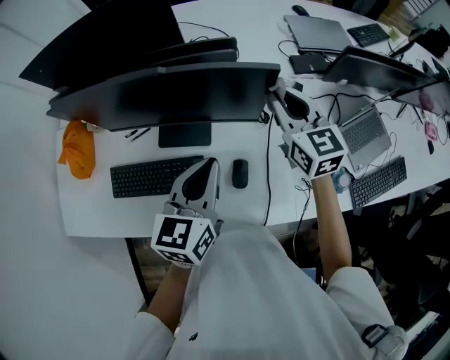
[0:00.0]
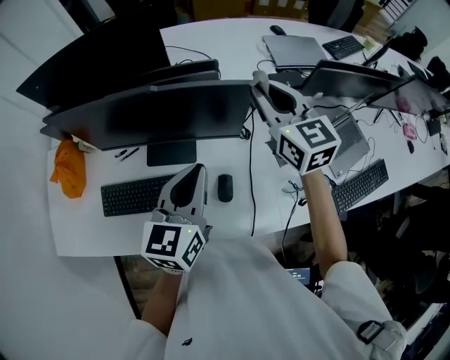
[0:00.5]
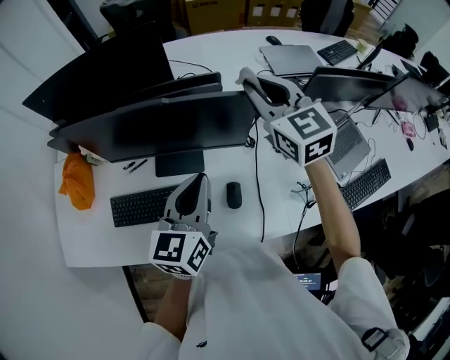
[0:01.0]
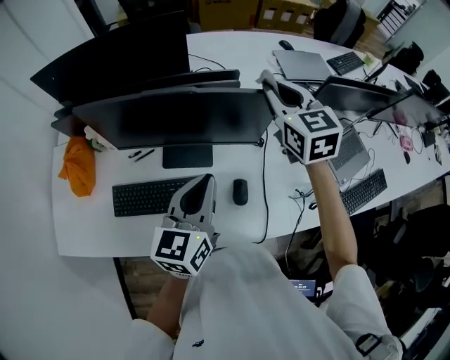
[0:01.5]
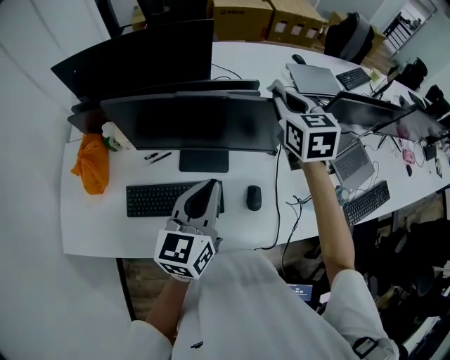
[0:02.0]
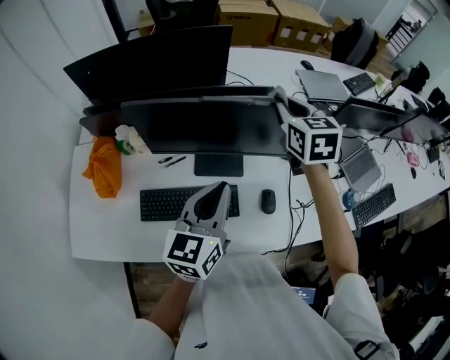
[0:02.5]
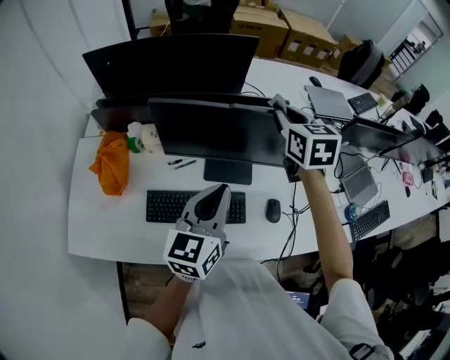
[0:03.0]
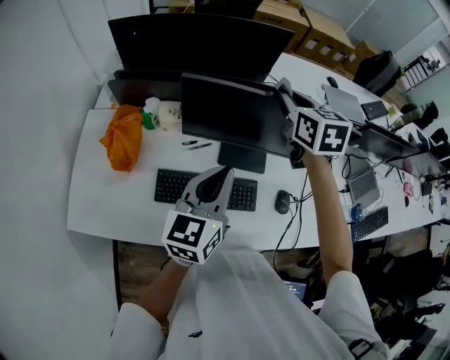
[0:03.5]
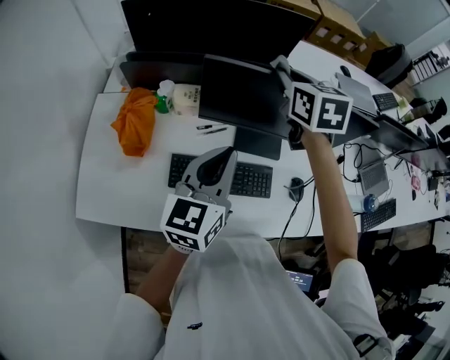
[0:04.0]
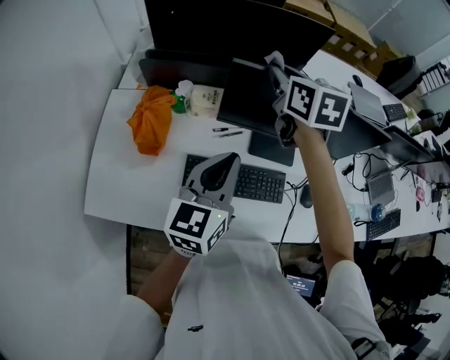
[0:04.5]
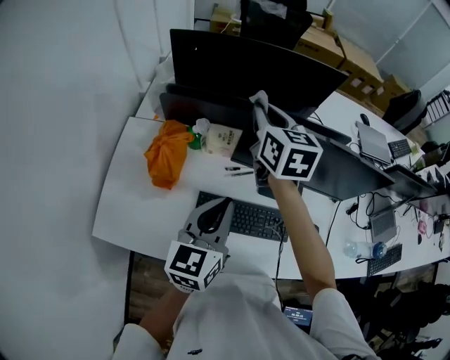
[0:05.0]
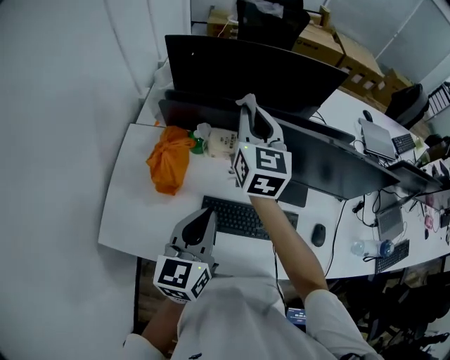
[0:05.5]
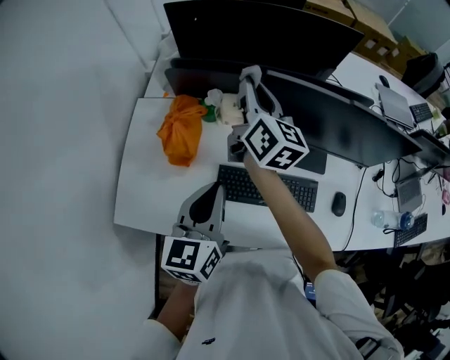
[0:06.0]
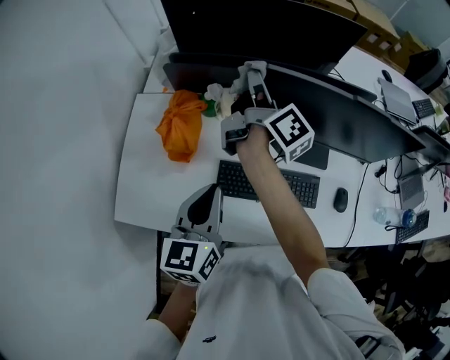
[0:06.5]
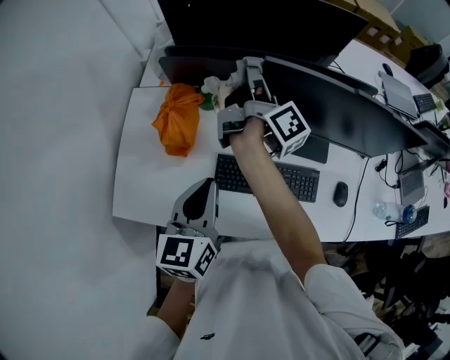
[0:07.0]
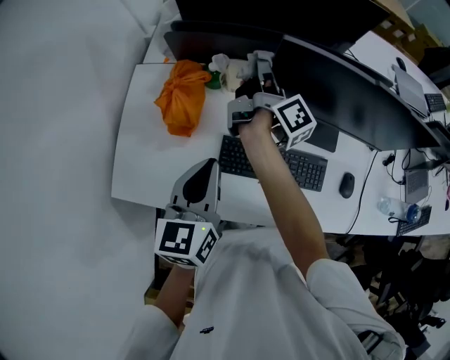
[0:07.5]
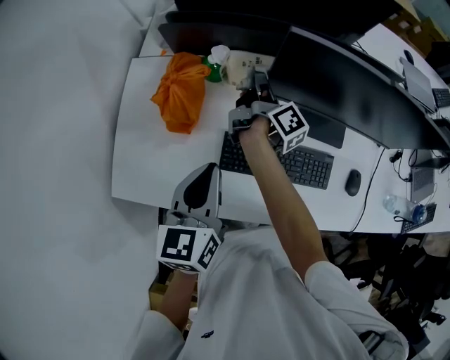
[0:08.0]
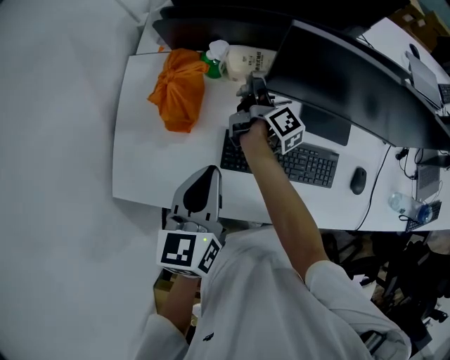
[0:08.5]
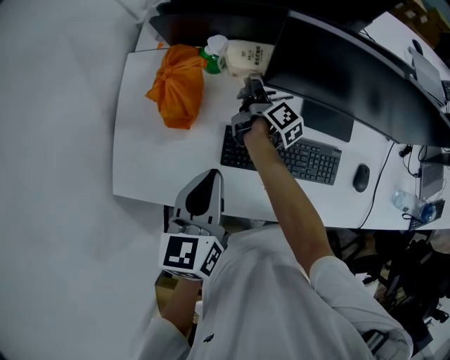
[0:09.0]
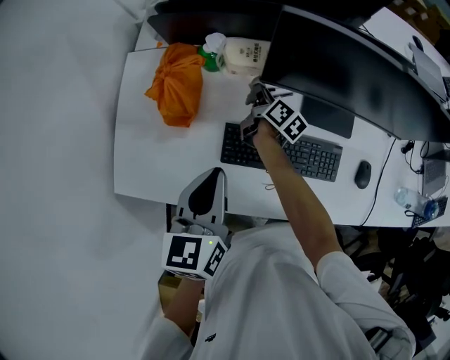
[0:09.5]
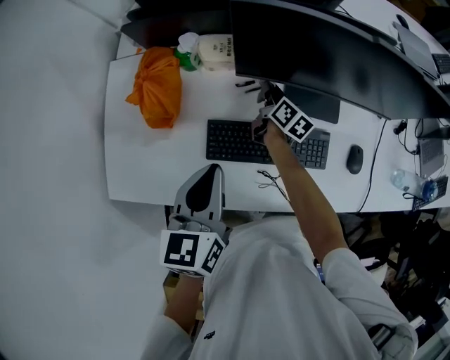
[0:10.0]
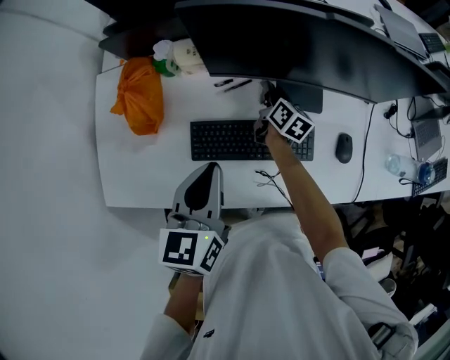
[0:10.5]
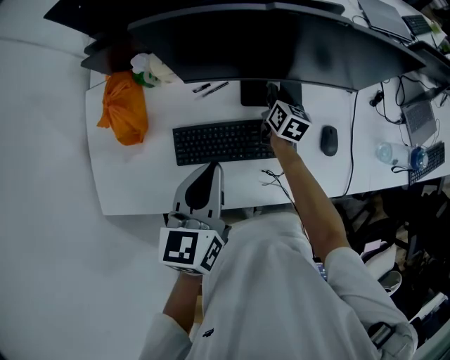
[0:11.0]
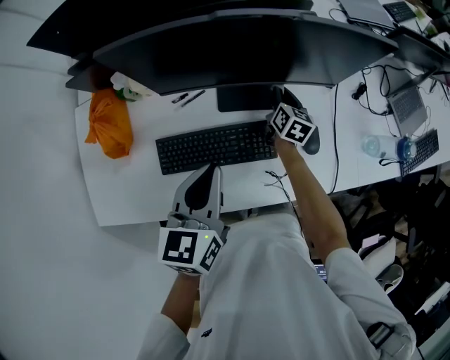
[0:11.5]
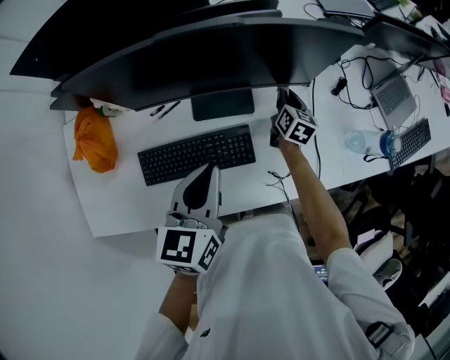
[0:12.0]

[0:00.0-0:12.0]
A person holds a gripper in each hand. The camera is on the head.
0:00.0 to 0:02.0: The right gripper heads upward and to the left, covering some 15 cm; the left gripper travels to the left and upward by some 10 cm.
0:02.0 to 0:04.0: Both grippers move to the left, roughly 25 cm.
0:04.0 to 0:06.0: The grippers both shift to the left by some 20 cm. The right gripper rotates about 40 degrees.
0:06.0 to 0:08.0: The right gripper is displaced downward by about 20 cm, and twists roughly 50 degrees clockwise, seen from behind; the left gripper ends up about 5 cm from where it was.
0:08.0 to 0:10.0: The right gripper is displaced downward and to the right by approximately 15 cm, and rotates about 40 degrees. Meanwhile the left gripper shifts about 5 cm to the right.
0:10.0 to 0:12.0: The two grippers go approximately 30 cm to the right. The right gripper turns by about 30 degrees.

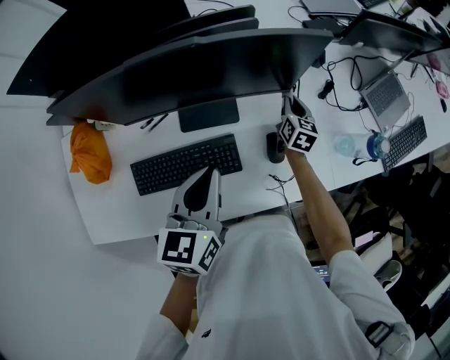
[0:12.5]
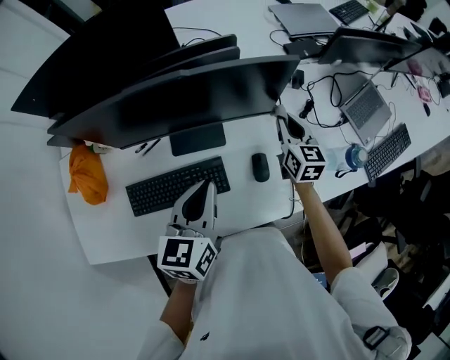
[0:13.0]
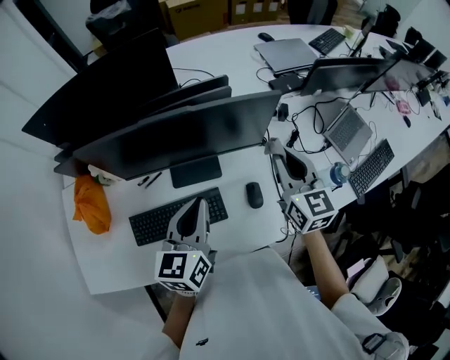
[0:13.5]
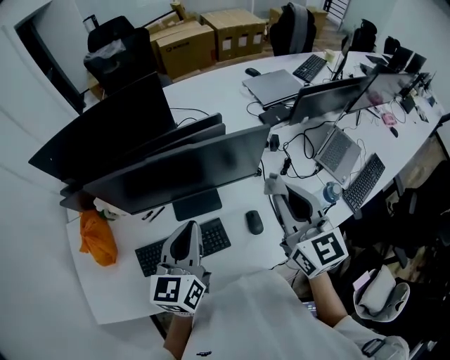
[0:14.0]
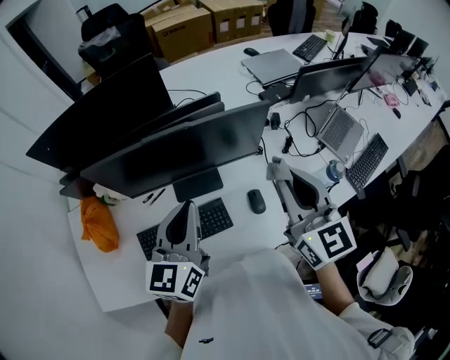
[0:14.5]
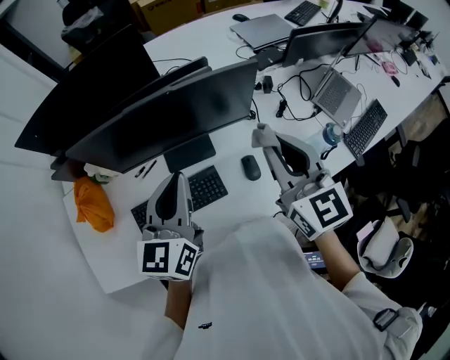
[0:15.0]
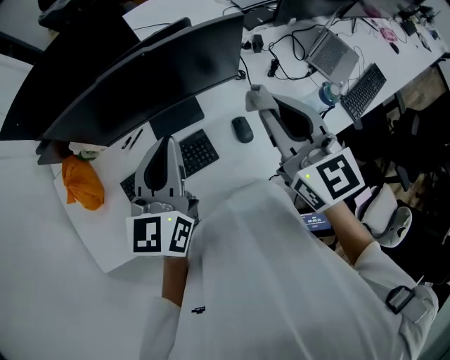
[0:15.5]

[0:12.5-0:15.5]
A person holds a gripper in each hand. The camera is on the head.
0:12.5 to 0:14.0: The right gripper shifts approximately 40 cm upward and backward, and changes its angle by roughly 30 degrees. The left gripper moves upward, some 10 cm.
0:14.0 to 0:15.5: The grippers make only small movements.

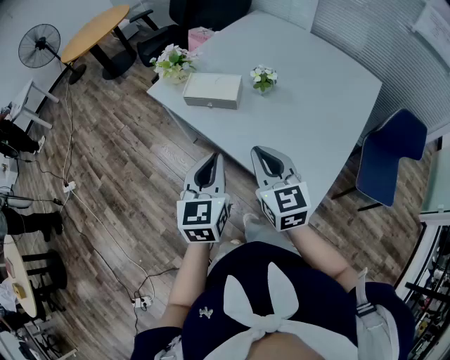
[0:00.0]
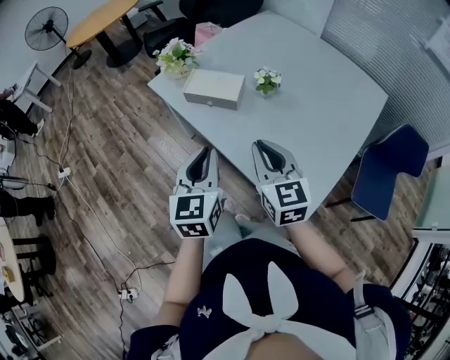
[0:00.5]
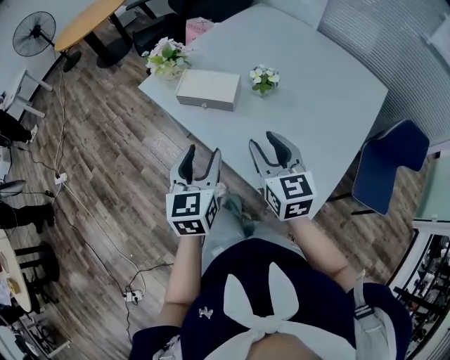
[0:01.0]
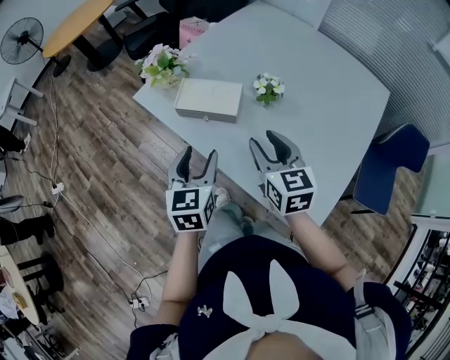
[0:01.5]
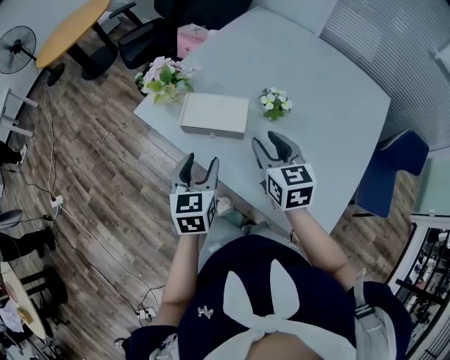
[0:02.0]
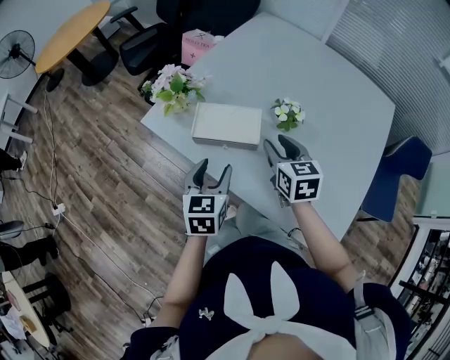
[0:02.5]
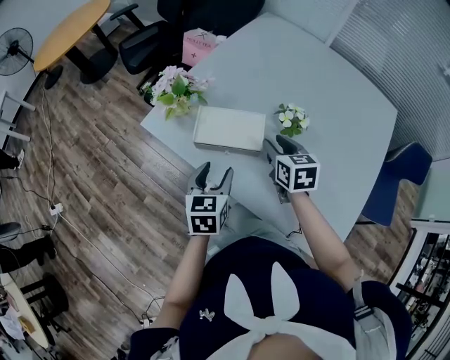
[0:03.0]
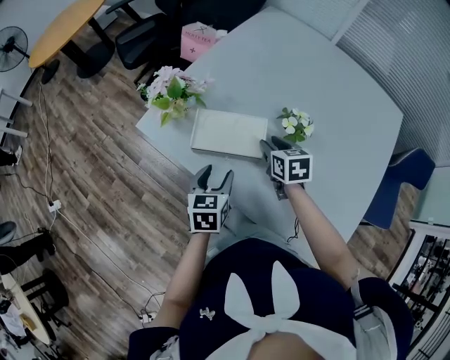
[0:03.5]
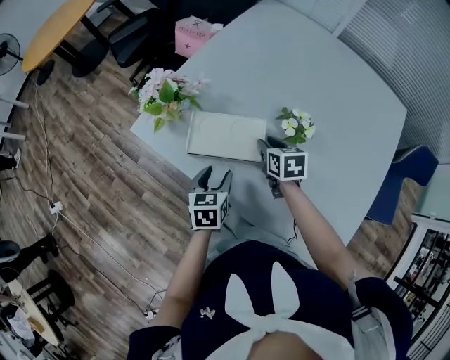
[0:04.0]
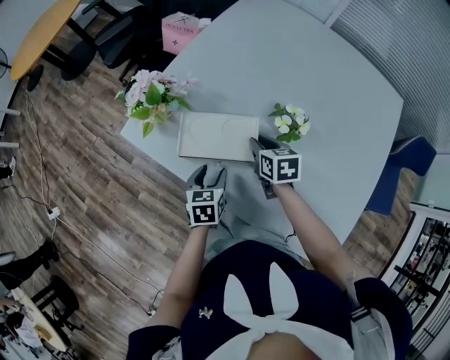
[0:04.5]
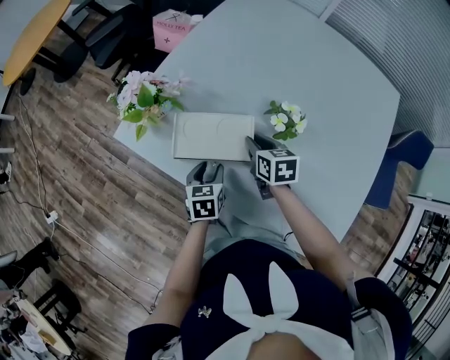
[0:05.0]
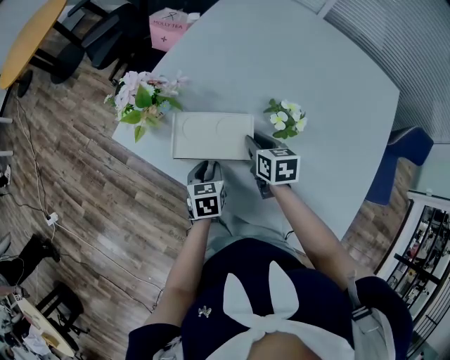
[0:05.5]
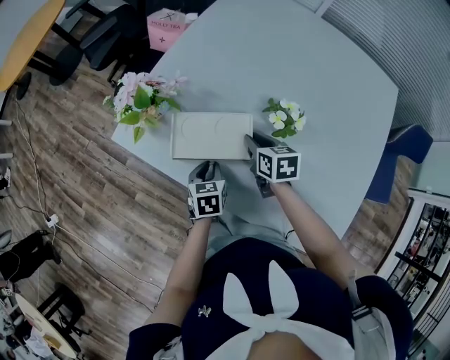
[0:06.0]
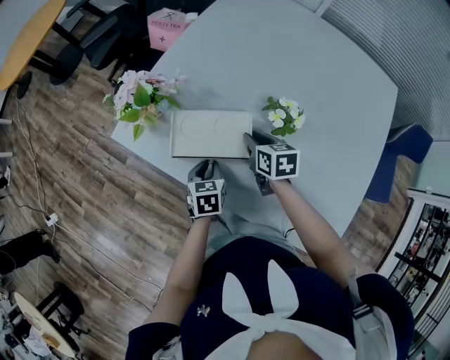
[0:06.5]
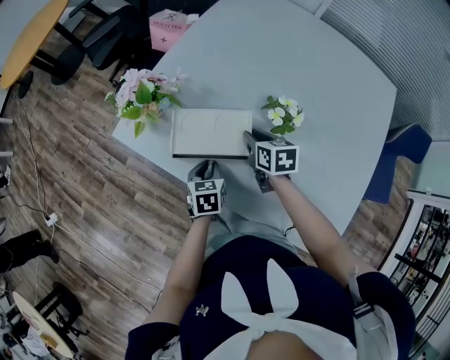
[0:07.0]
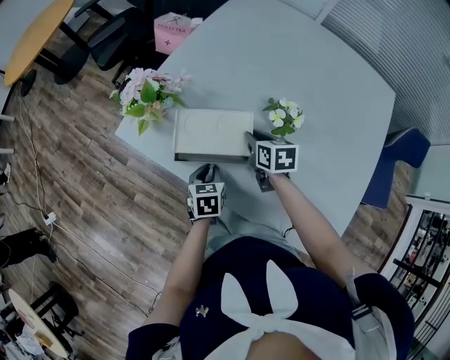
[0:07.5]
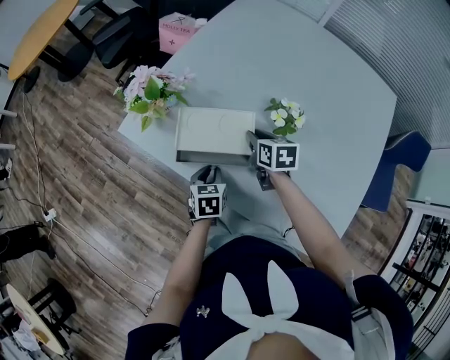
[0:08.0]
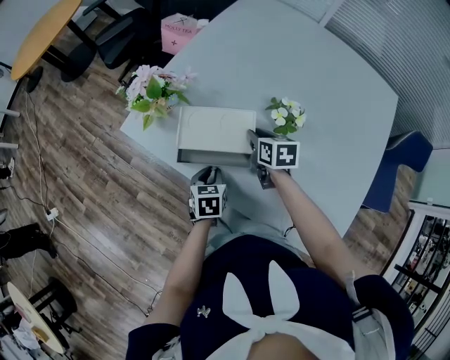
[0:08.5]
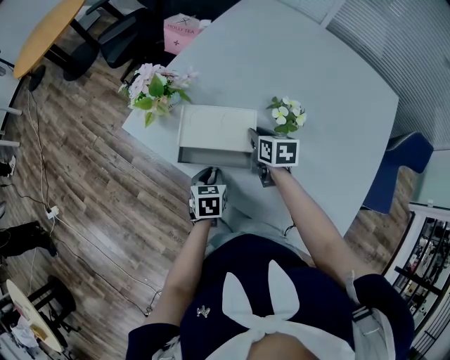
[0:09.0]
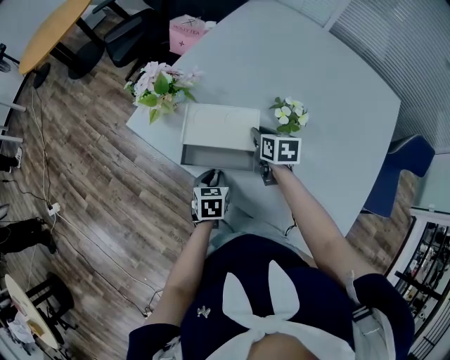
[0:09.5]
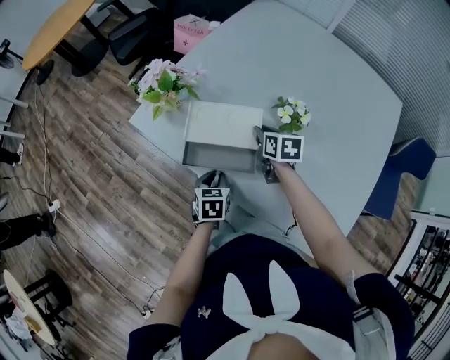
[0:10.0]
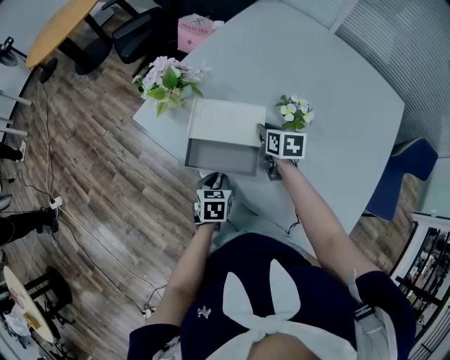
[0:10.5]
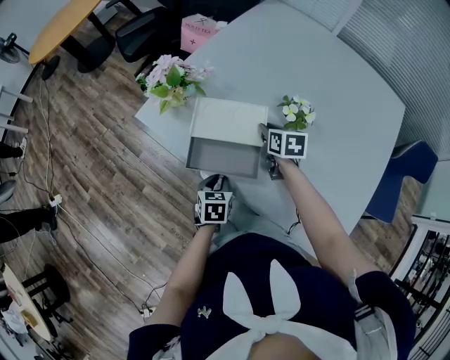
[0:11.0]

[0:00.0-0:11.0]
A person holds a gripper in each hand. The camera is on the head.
0:00.0 to 0:02.0: The right gripper travels forward by approximately 25 cm, and opens. Meanwhile the left gripper travels forward and downward by some 25 cm, and opens.
0:02.0 to 0:03.5: Both grippers travel together downward and forward, roughly 15 cm. The right gripper rotates some 20 degrees.
0:03.5 to 0:05.5: The left gripper shifts some 10 cm downward, and closes.
0:05.5 to 0:09.0: The grippers stay close to where they were, moving slightly.
0:09.0 to 0:11.0: The left gripper travels backward by approximately 5 cm.

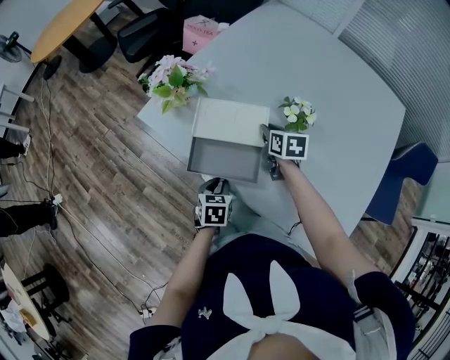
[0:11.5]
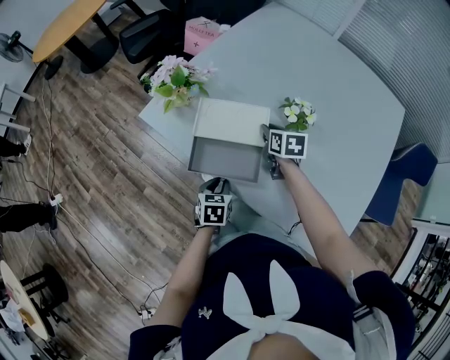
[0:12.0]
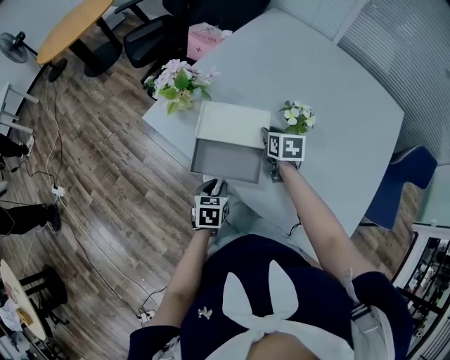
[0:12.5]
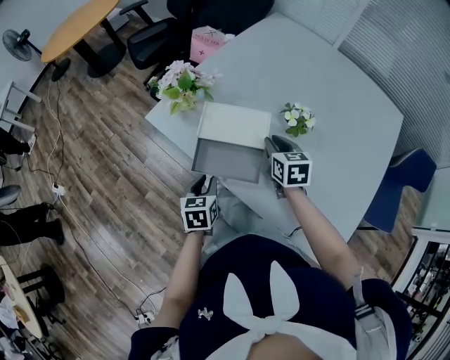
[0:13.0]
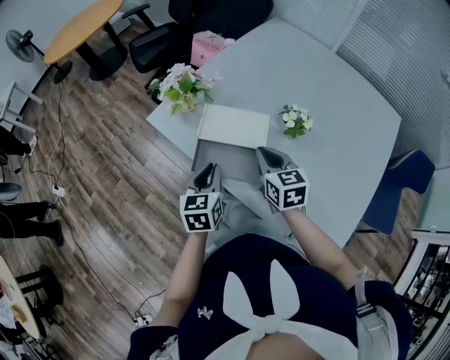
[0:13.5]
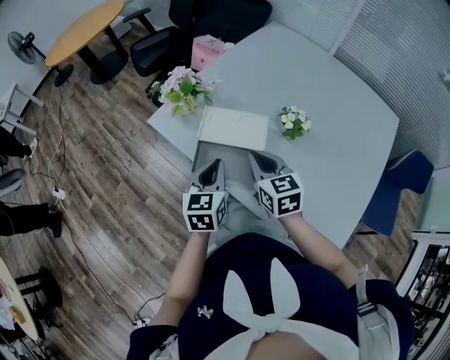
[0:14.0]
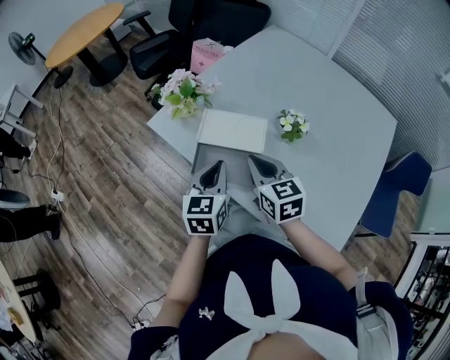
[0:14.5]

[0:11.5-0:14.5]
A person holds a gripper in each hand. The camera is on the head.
0:11.5 to 0:13.0: The right gripper is displaced upward and backward by roughly 10 cm; the left gripper is displaced upward by roughly 5 cm.
0:13.0 to 0:14.5: The left gripper goes approximately 15 cm upward, and swivels about 20 degrees; the right gripper is displaced upward, to the left and backward by about 15 cm.
